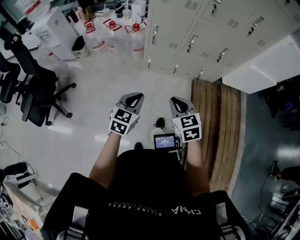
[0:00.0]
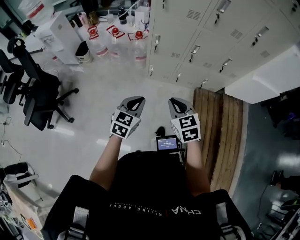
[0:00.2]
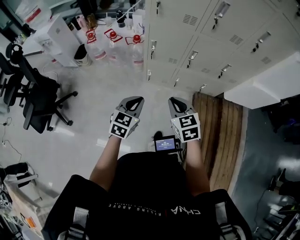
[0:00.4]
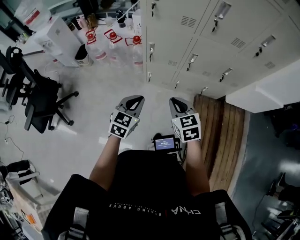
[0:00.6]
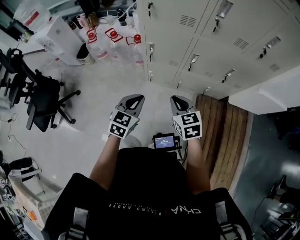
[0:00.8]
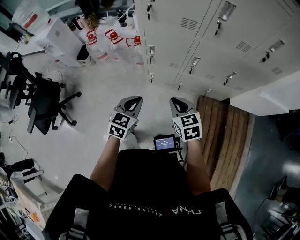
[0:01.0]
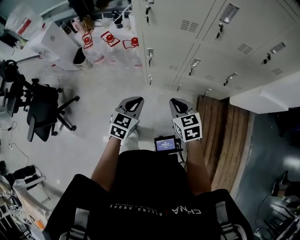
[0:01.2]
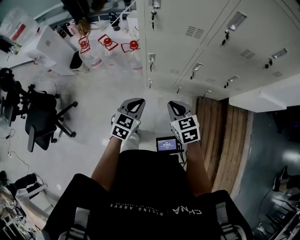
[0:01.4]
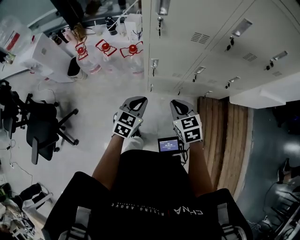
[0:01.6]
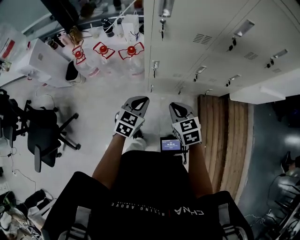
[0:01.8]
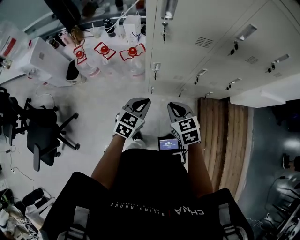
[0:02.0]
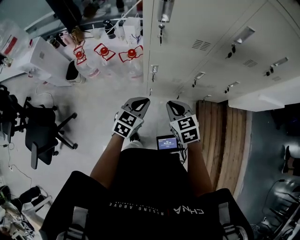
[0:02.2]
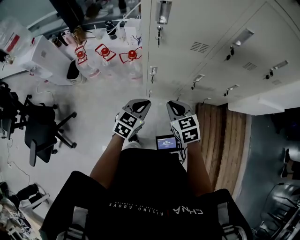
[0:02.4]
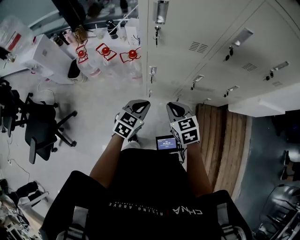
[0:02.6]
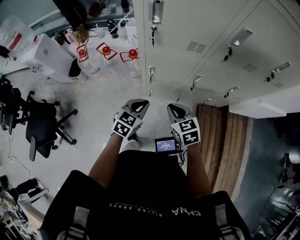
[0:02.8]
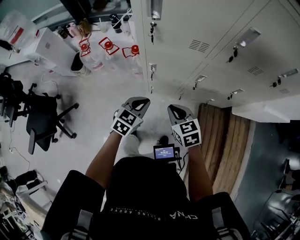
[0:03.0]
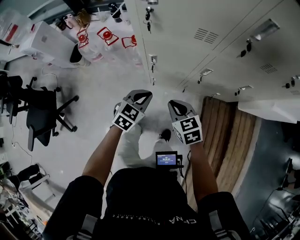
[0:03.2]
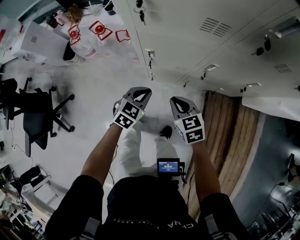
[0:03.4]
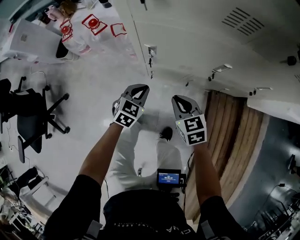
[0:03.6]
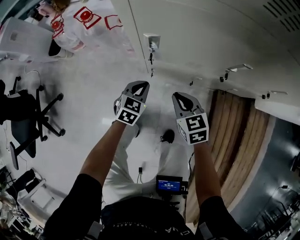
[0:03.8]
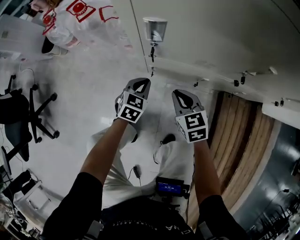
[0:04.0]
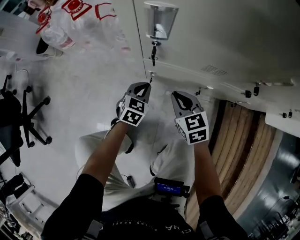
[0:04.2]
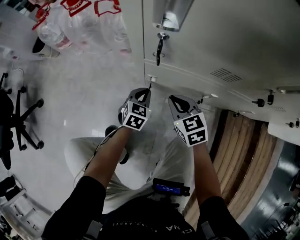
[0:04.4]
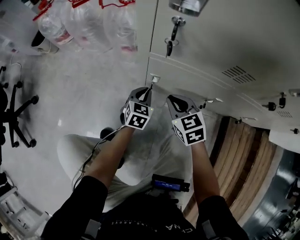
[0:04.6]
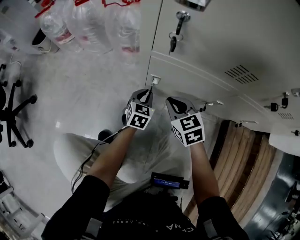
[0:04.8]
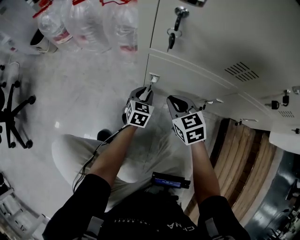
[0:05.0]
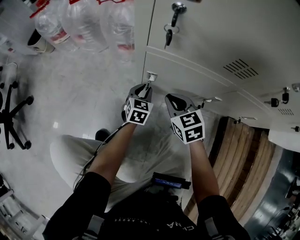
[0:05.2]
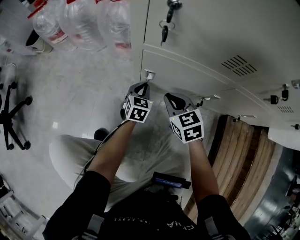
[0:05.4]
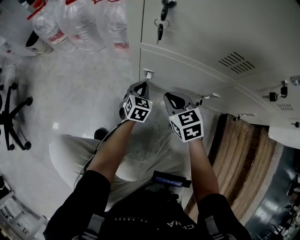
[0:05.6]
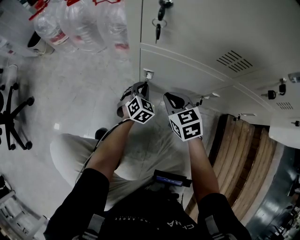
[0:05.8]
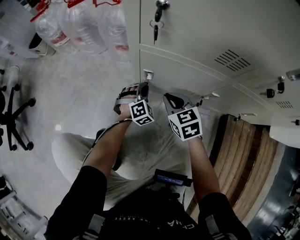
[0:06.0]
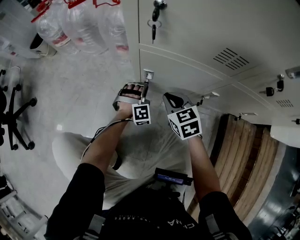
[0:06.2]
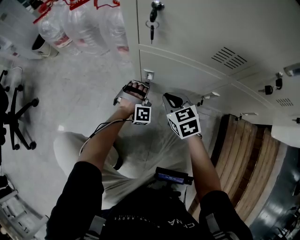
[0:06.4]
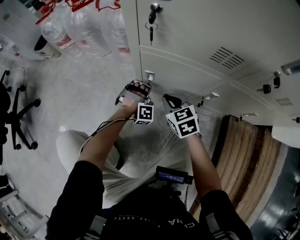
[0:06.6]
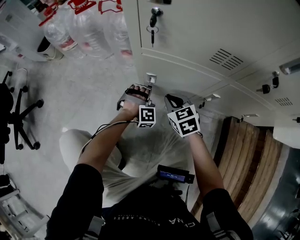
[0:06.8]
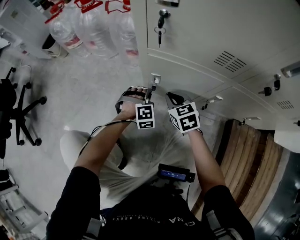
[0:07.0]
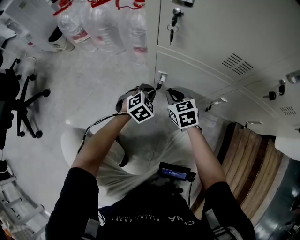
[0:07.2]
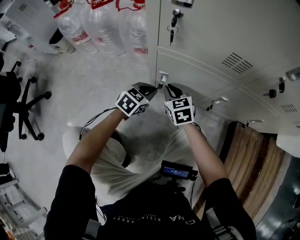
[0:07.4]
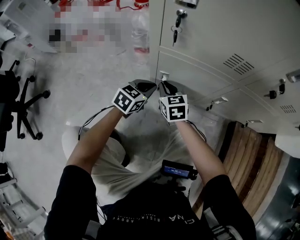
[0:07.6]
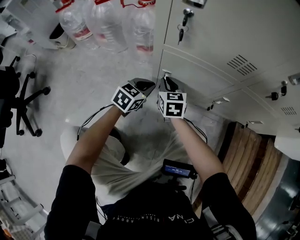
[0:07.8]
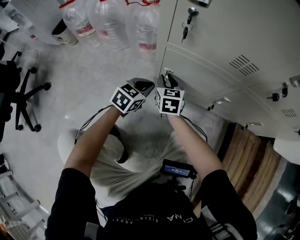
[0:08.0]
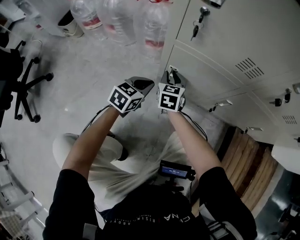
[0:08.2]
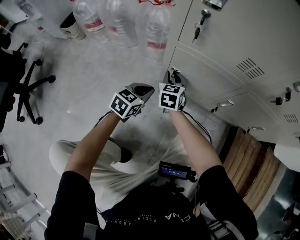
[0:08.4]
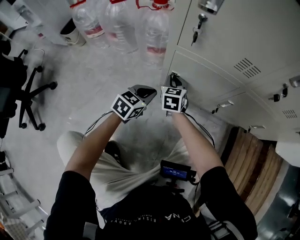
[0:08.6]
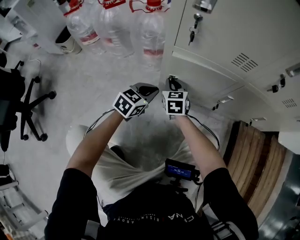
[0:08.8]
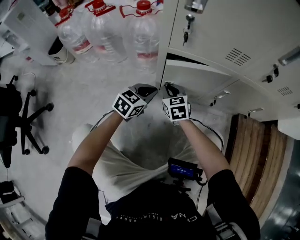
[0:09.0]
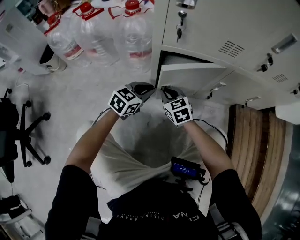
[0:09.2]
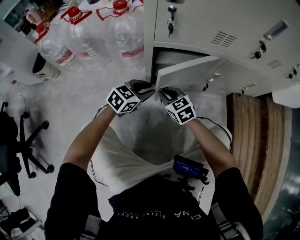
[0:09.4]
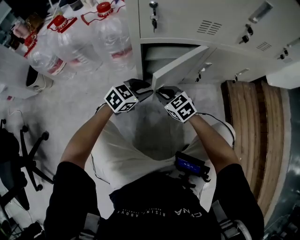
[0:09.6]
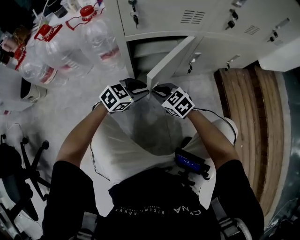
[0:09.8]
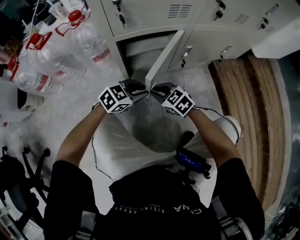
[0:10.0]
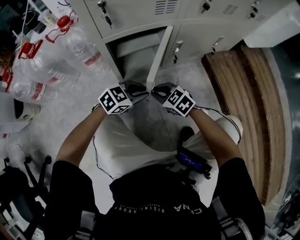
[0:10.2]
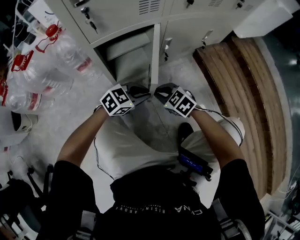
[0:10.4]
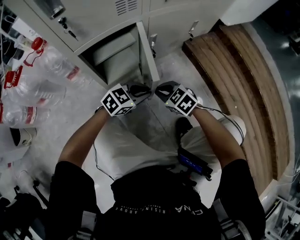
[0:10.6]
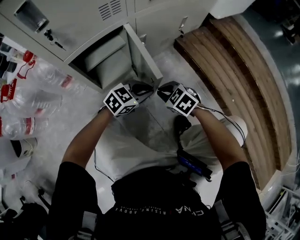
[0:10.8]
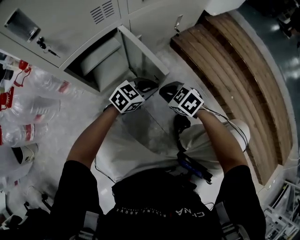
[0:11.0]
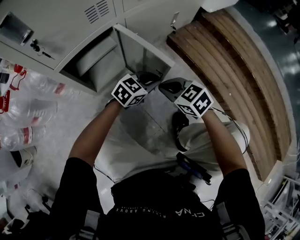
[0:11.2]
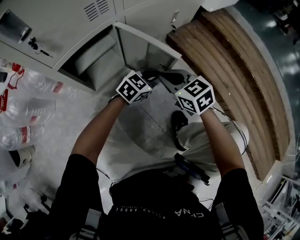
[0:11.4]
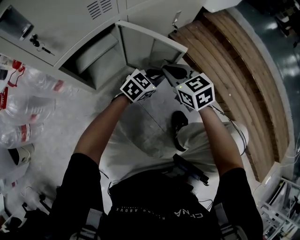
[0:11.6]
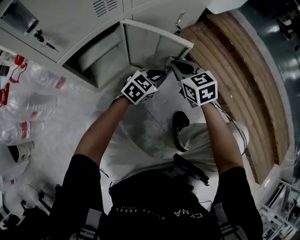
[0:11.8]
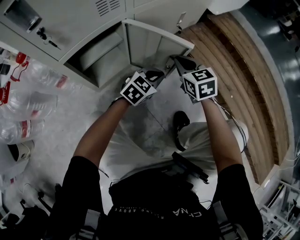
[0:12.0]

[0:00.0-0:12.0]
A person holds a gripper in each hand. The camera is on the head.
0:00.0 to 0:01.6: The grippers both shift forward by some 35 cm.
0:01.6 to 0:03.0: The right gripper ends up some 5 cm from where it was, while the left gripper travels to the right and forward by some 5 cm.
0:03.0 to 0:04.4: Both grippers travel together downward, approximately 60 cm.
0:04.4 to 0:06.0: Both grippers travel together downward, roughly 10 cm. The left gripper twists some 40 degrees clockwise, seen from behind.
0:06.0 to 0:07.6: The left gripper travels upward by some 10 cm, and changes its angle by roughly 50 degrees, while the right gripper changes place by about 10 cm.
0:07.6 to 0:09.0: The left gripper moves some 5 cm.
0:09.0 to 0:10.4: The right gripper shifts by some 20 cm. Meanwhile the left gripper shifts by about 20 cm, and rotates about 60 degrees.
0:10.4 to 0:12.0: The left gripper changes place by some 15 cm. Meanwhile the right gripper ends up roughly 20 cm from where it was, and rotates about 50 degrees.

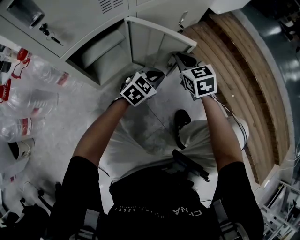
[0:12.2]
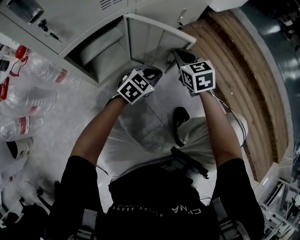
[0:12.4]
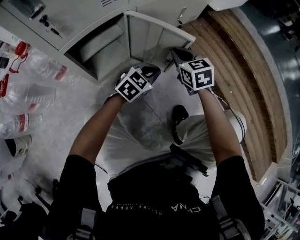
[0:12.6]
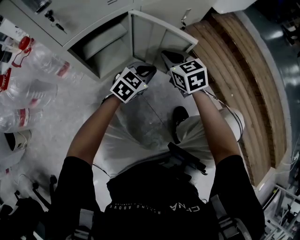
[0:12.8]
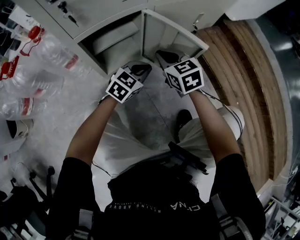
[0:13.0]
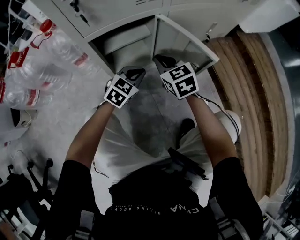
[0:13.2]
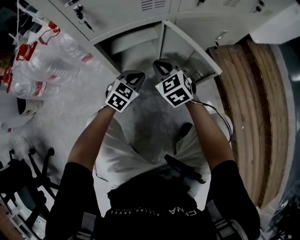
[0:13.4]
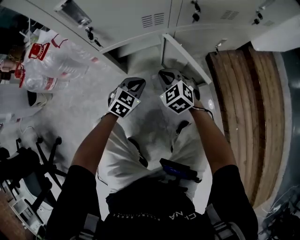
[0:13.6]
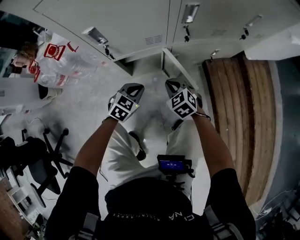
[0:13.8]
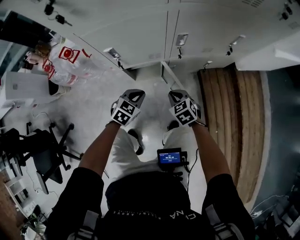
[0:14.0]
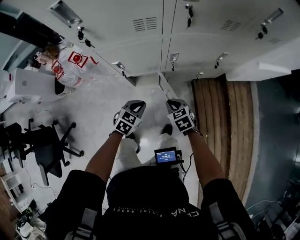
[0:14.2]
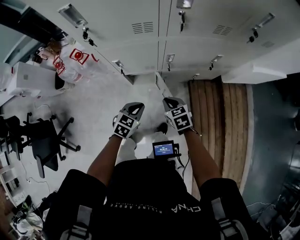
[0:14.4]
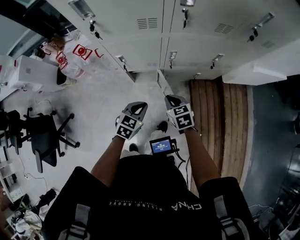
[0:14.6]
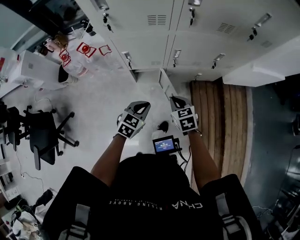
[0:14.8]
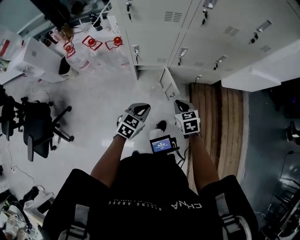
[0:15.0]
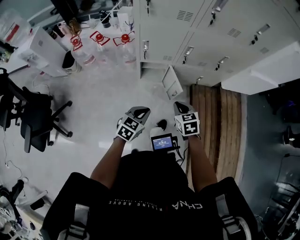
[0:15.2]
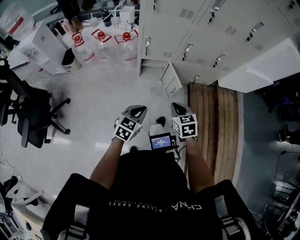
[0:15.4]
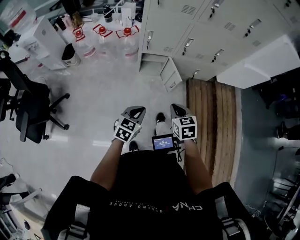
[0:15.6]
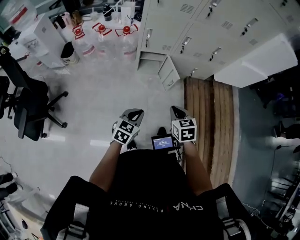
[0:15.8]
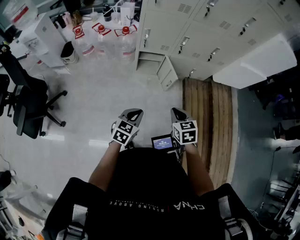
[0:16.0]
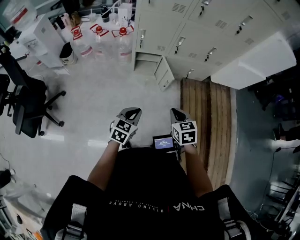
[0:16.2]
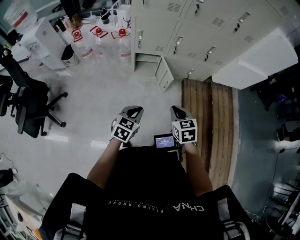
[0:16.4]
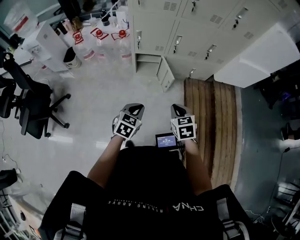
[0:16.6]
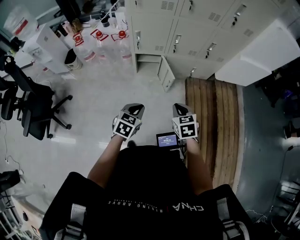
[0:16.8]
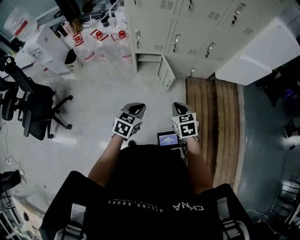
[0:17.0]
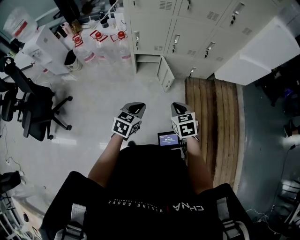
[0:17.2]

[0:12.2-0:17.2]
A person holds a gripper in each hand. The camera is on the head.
0:12.2 to 0:13.8: The right gripper shifts about 10 cm upward, and swivels roughly 40 degrees, while the left gripper heads upward, covering some 20 cm, and changes its angle by roughly 40 degrees.
0:13.8 to 0:15.6: The right gripper shifts approximately 60 cm upward and backward. Meanwhile the left gripper is displaced backward and upward by approximately 60 cm, and turns by some 30 degrees.
0:15.6 to 0:17.2: The grippers both shift to the right by approximately 10 cm.

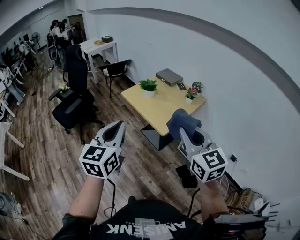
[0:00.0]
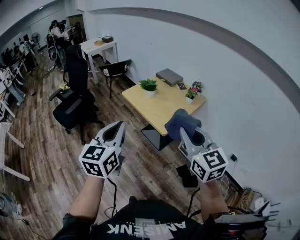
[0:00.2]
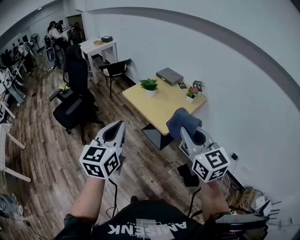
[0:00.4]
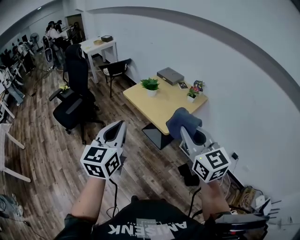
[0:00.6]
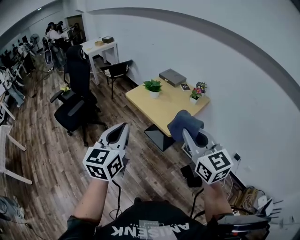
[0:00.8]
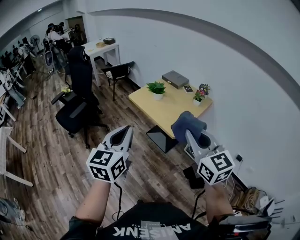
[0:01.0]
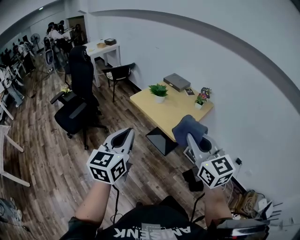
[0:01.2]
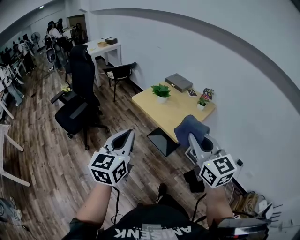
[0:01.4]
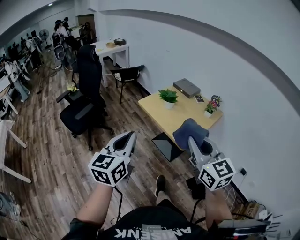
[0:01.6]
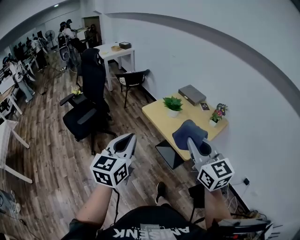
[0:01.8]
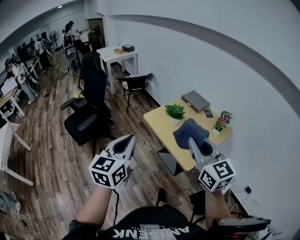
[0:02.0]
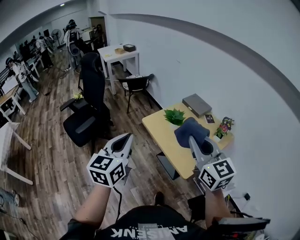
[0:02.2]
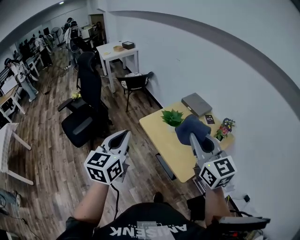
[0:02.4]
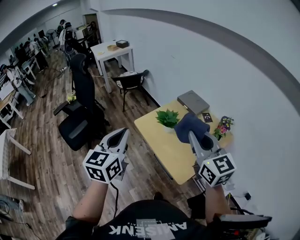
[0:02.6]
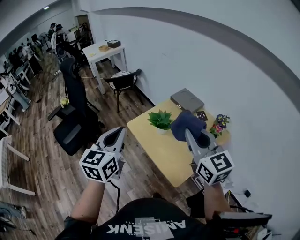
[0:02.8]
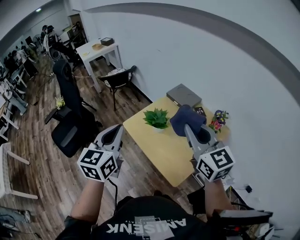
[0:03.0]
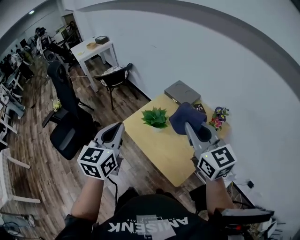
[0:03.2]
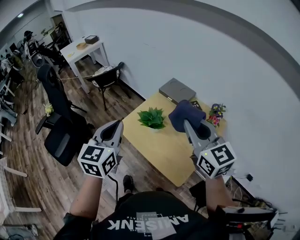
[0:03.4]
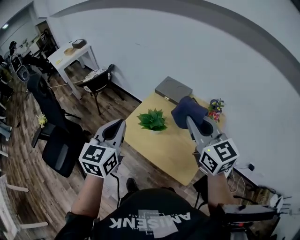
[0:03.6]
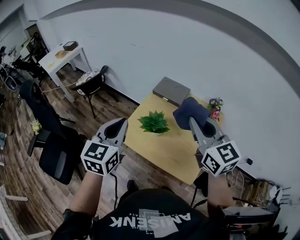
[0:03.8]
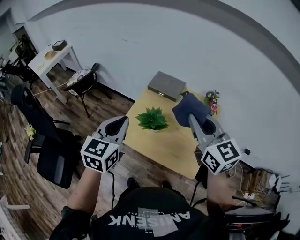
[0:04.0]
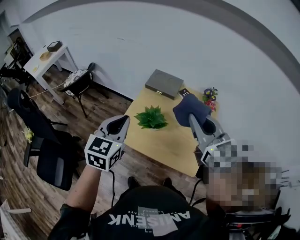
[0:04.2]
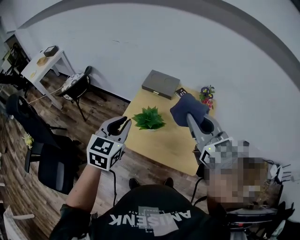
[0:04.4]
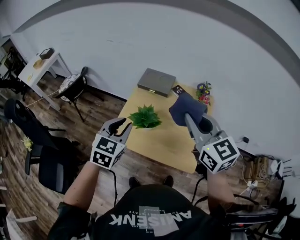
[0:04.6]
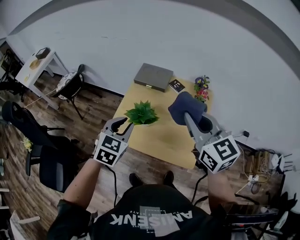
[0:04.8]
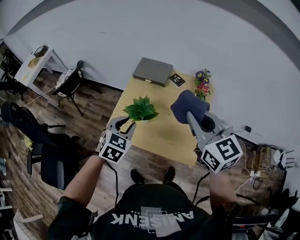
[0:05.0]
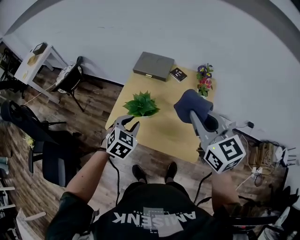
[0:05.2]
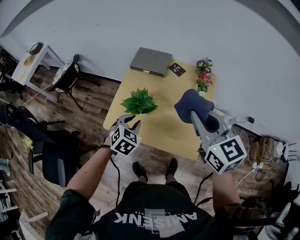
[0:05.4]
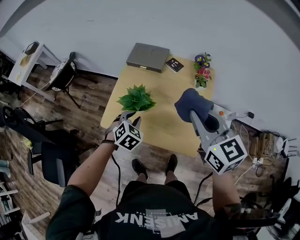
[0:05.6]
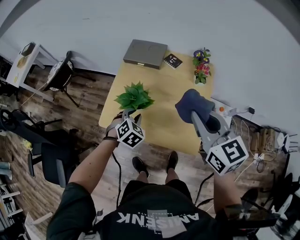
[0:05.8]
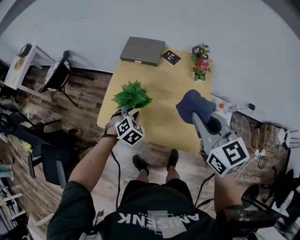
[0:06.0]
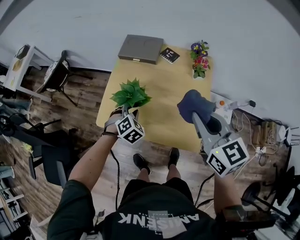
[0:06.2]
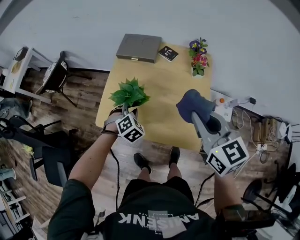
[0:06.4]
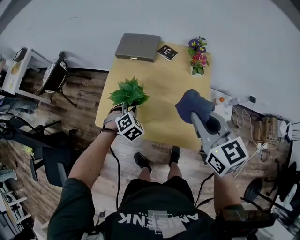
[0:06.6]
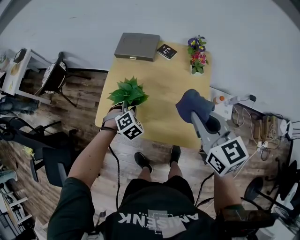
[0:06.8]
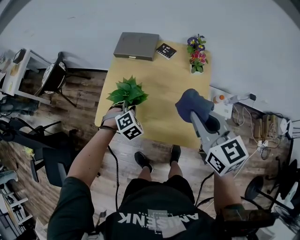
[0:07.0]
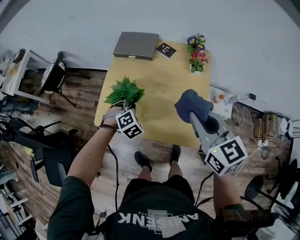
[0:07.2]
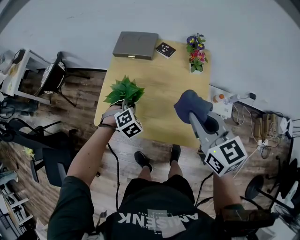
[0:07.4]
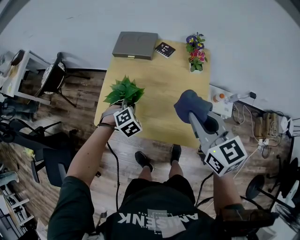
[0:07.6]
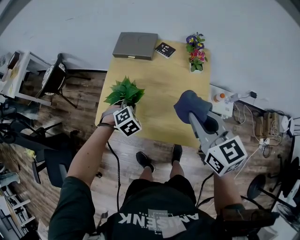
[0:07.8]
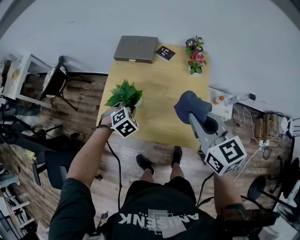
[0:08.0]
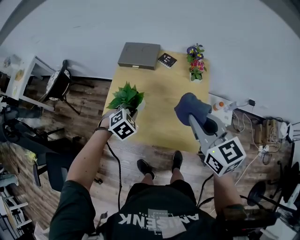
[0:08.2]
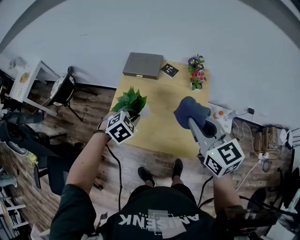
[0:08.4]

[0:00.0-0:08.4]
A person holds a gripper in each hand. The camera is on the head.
0:00.0 to 0:01.4: The grippers both shift to the left by about 10 cm.
0:01.4 to 0:02.8: The grippers both shift forward by roughly 35 cm.
0:02.8 to 0:04.2: The right gripper moves roughly 10 cm, and rotates roughly 30 degrees, while the left gripper moves roughly 20 cm, and turns by about 40 degrees.
0:04.2 to 0:05.6: The left gripper moves downward, roughly 25 cm, angles its fingers downward, by about 30 degrees, and opens; the right gripper shifts some 10 cm downward and to the right.
0:05.6 to 0:07.0: The two grippers go roughly 5 cm downward. The left gripper turns by approximately 30 degrees.
0:07.0 to 0:08.4: The left gripper moves upward, roughly 10 cm.
